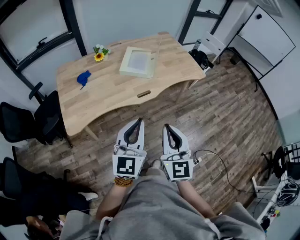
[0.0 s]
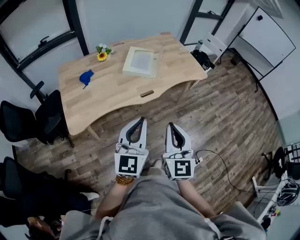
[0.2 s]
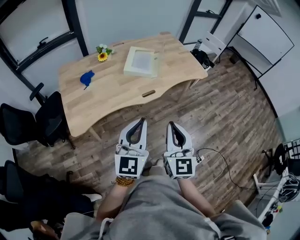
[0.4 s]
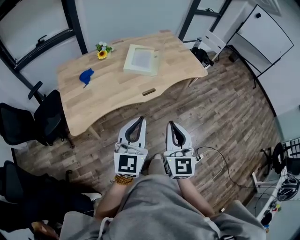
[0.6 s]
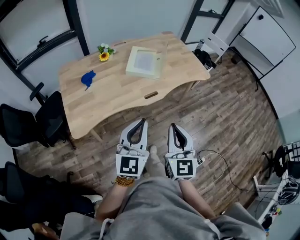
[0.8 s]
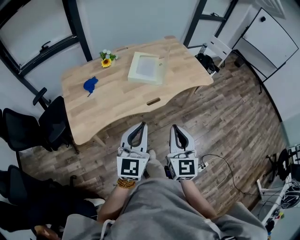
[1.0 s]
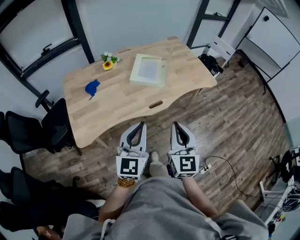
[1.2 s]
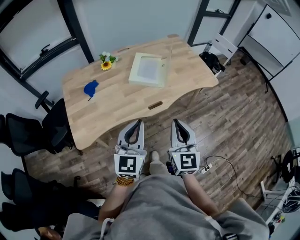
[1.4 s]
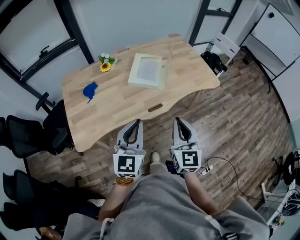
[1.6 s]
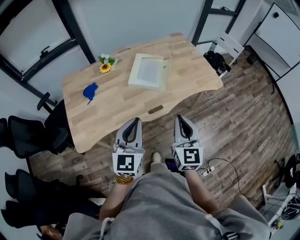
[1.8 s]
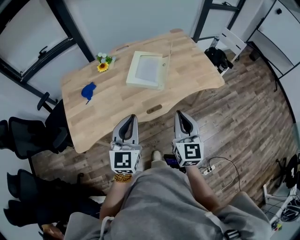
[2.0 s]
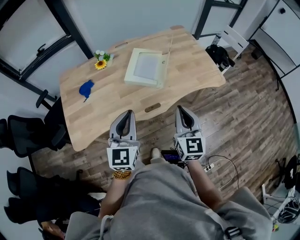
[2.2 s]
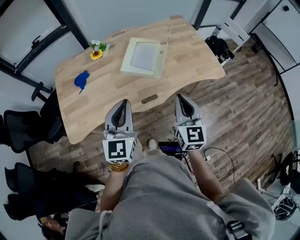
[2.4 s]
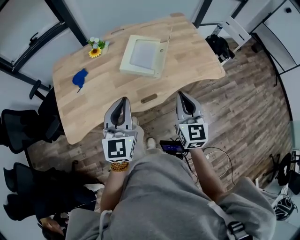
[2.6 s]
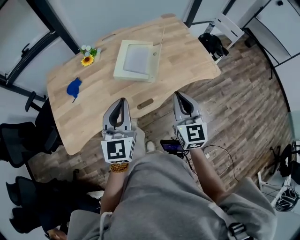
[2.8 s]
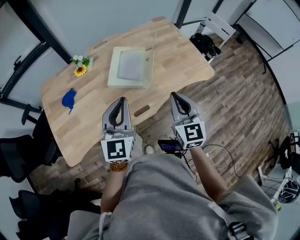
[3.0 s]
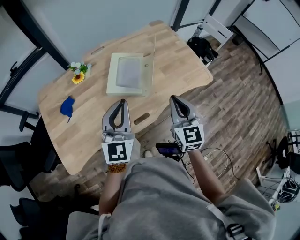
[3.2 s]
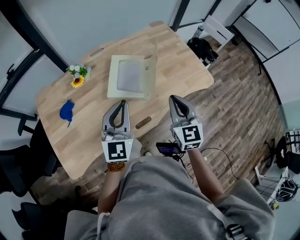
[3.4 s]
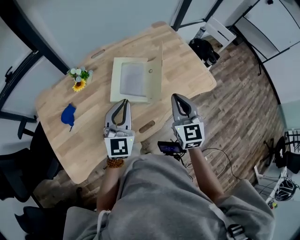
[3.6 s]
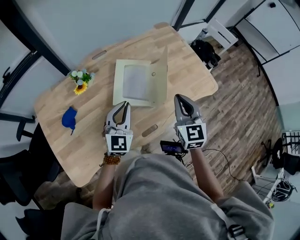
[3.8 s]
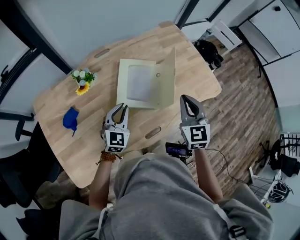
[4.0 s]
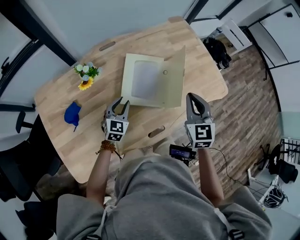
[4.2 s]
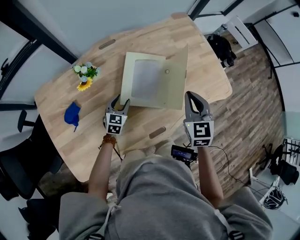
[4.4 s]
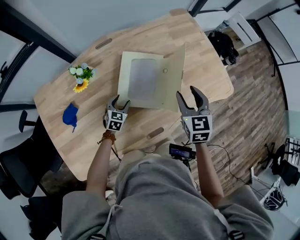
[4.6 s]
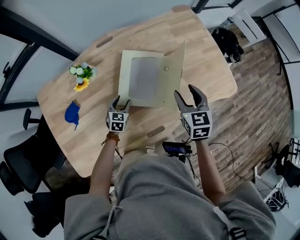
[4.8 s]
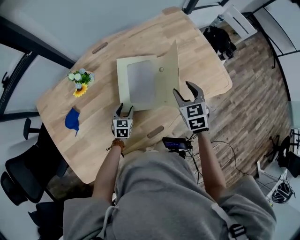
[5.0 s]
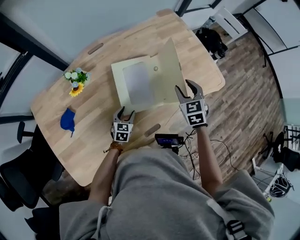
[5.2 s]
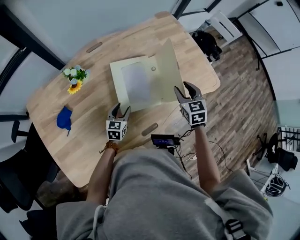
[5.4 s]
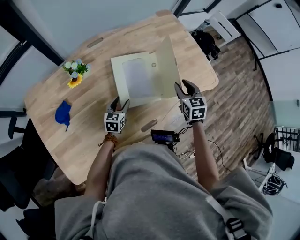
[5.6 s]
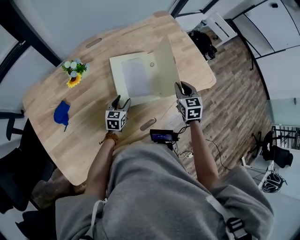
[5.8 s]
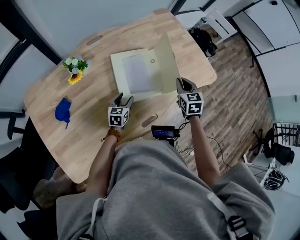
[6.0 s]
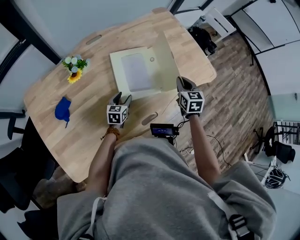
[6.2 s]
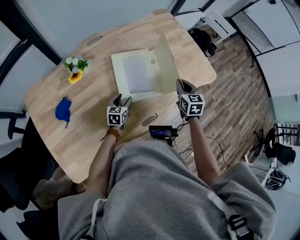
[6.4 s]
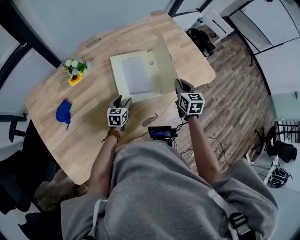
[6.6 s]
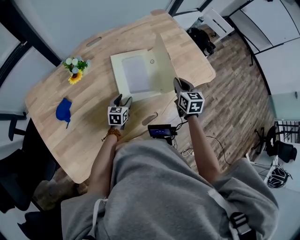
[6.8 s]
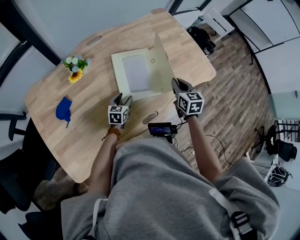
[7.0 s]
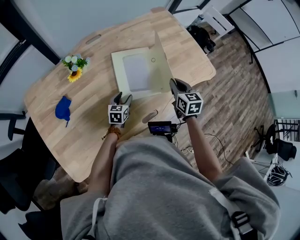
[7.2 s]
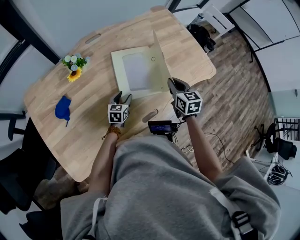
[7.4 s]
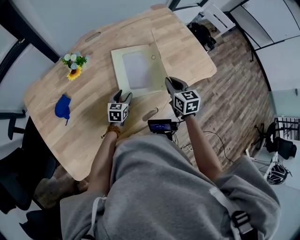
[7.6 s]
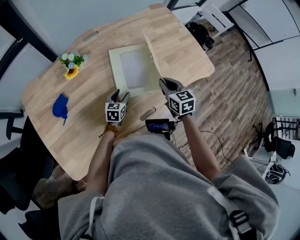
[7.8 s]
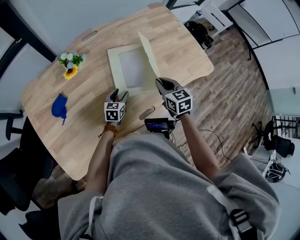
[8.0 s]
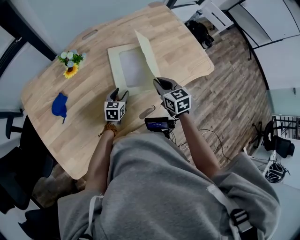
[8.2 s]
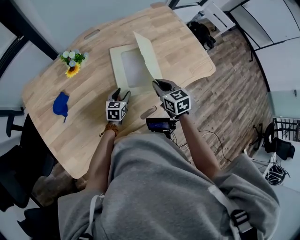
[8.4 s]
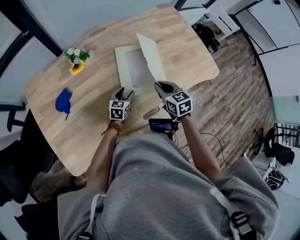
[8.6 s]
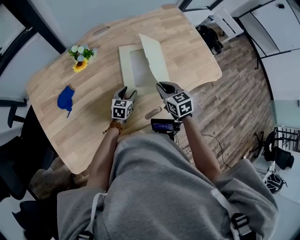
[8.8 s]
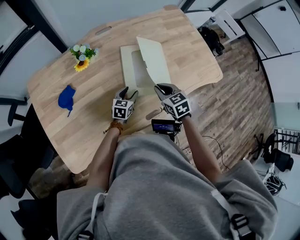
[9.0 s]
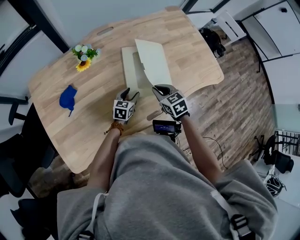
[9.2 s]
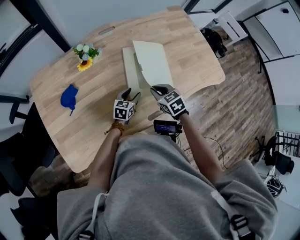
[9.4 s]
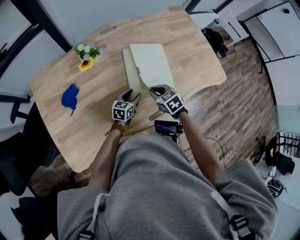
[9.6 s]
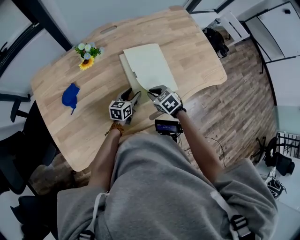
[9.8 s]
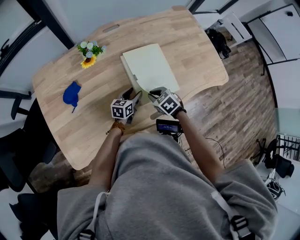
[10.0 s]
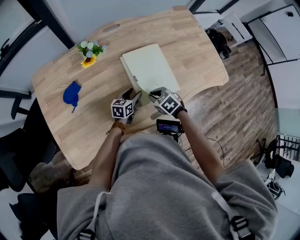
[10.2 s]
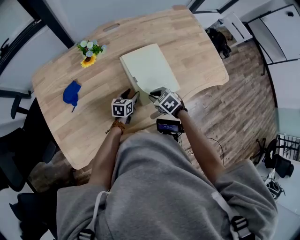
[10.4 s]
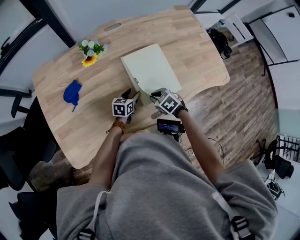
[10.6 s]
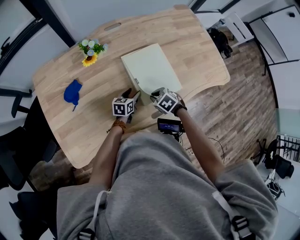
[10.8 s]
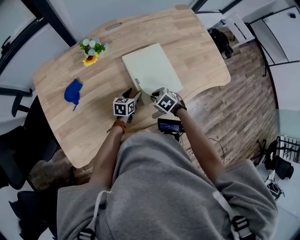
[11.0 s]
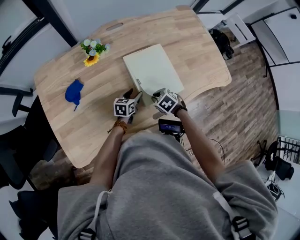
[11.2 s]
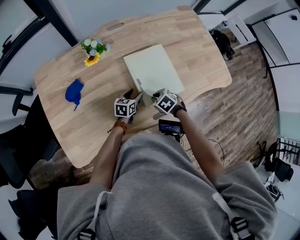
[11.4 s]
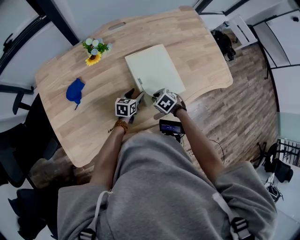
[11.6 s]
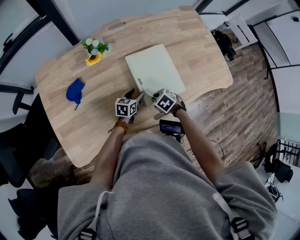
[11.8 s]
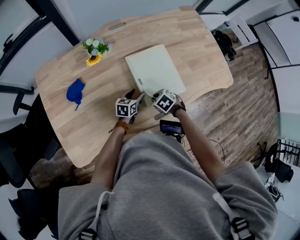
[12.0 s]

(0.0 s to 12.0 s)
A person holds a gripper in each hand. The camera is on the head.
0.0 s - 1.6 s: Both grippers travel together forward, approximately 15 cm.
1.6 s - 3.0 s: The grippers both shift forward by about 20 cm.
3.0 s - 4.4 s: The left gripper is displaced downward, forward and to the left by roughly 40 cm, points its fingers roughly 30 degrees further downward, and opens. Meanwhile the right gripper moves forward, about 20 cm.
4.4 s - 6.0 s: The right gripper moves downward and to the right, approximately 10 cm, and opens, then closes once more. Meanwhile the left gripper moves to the right, about 5 cm.
6.0 s - 7.6 s: The right gripper moves to the left, some 5 cm.
7.6 s - 9.0 s: The right gripper moves to the left, some 10 cm, and rotates roughly 20 degrees.
9.0 s - 10.4 s: The right gripper is displaced downward and to the left by about 10 cm, and rotates roughly 30 degrees.
10.4 s - 12.0 s: The grippers move only a little.

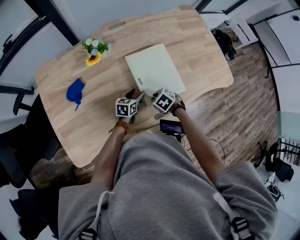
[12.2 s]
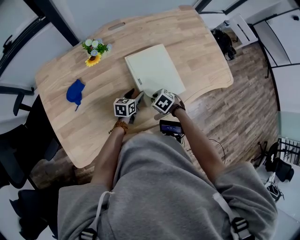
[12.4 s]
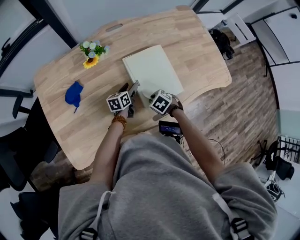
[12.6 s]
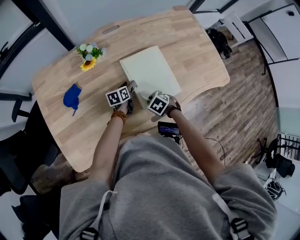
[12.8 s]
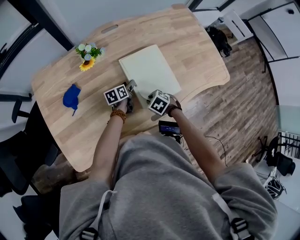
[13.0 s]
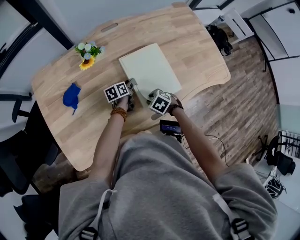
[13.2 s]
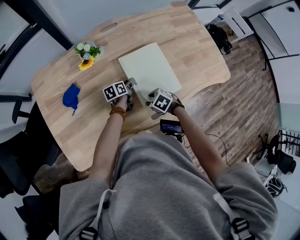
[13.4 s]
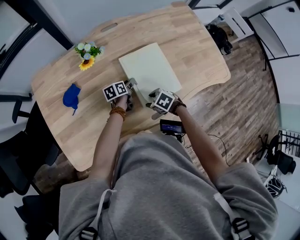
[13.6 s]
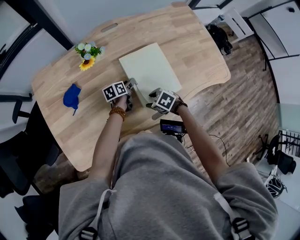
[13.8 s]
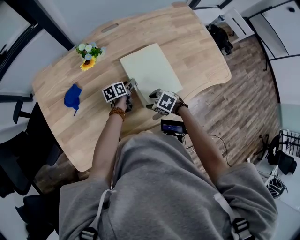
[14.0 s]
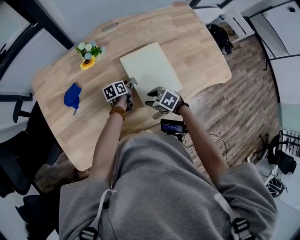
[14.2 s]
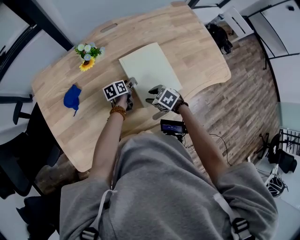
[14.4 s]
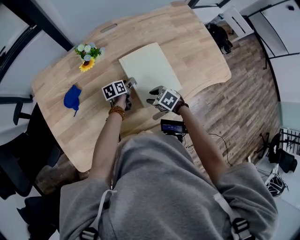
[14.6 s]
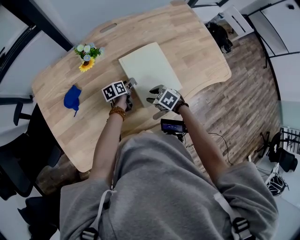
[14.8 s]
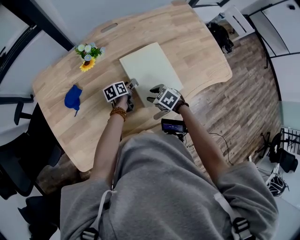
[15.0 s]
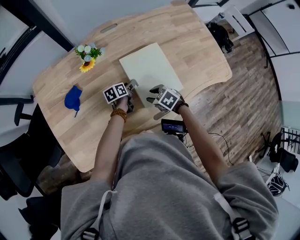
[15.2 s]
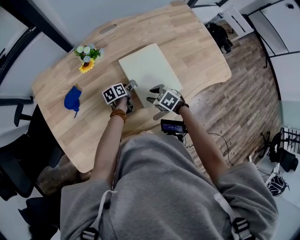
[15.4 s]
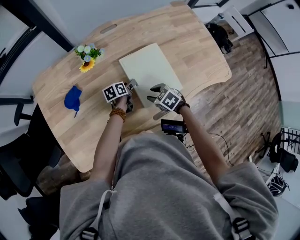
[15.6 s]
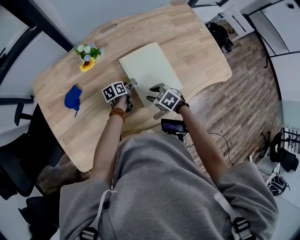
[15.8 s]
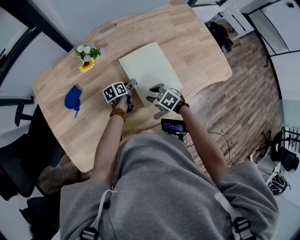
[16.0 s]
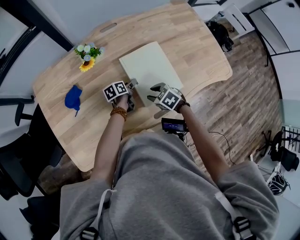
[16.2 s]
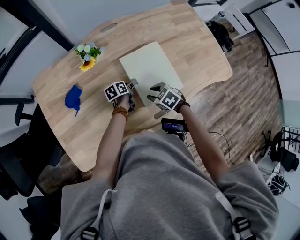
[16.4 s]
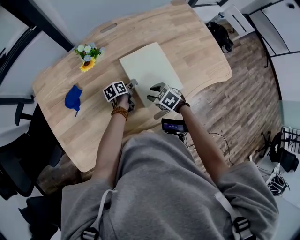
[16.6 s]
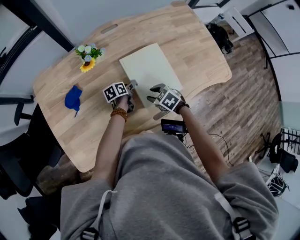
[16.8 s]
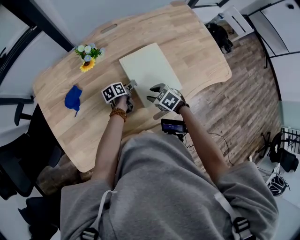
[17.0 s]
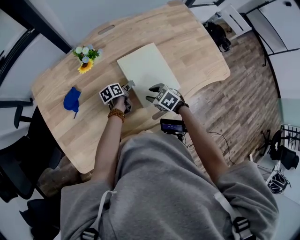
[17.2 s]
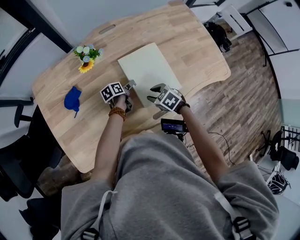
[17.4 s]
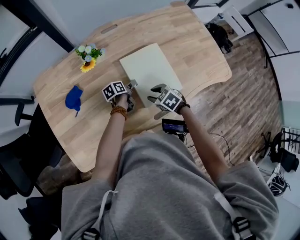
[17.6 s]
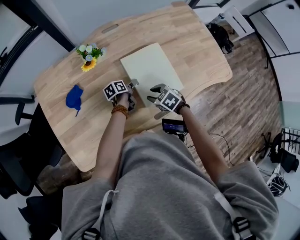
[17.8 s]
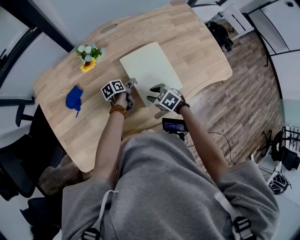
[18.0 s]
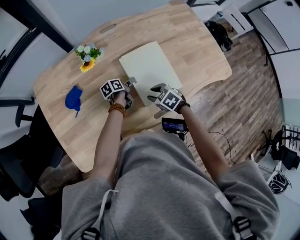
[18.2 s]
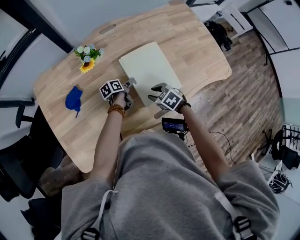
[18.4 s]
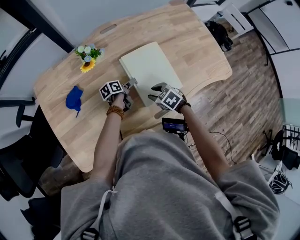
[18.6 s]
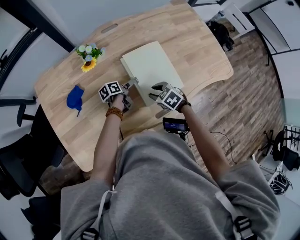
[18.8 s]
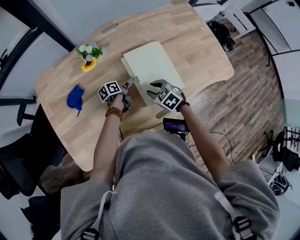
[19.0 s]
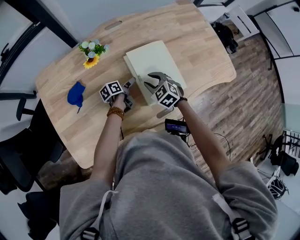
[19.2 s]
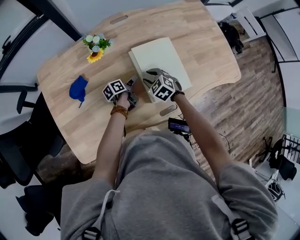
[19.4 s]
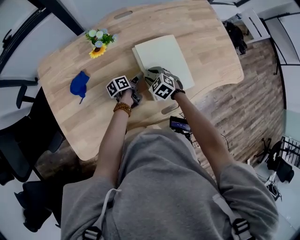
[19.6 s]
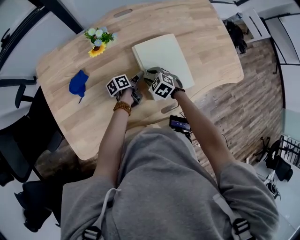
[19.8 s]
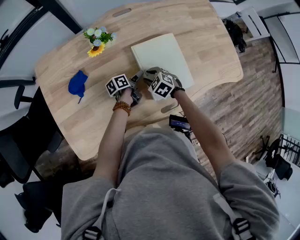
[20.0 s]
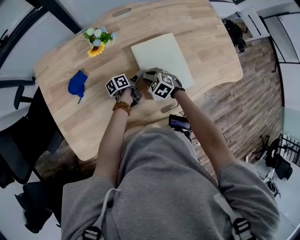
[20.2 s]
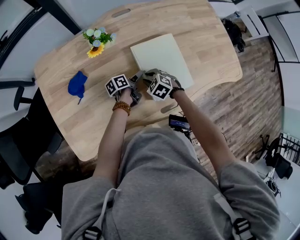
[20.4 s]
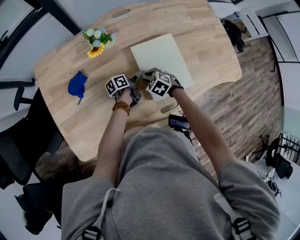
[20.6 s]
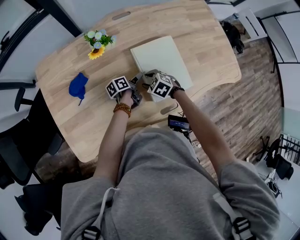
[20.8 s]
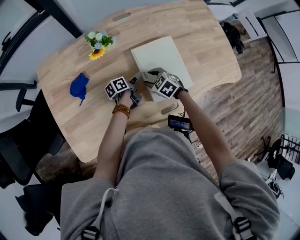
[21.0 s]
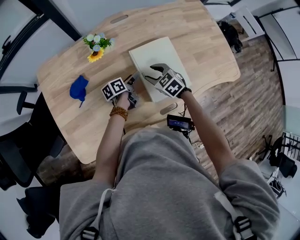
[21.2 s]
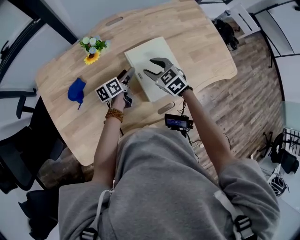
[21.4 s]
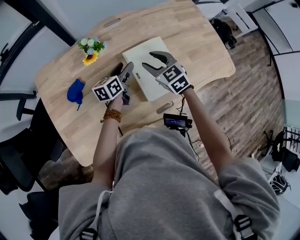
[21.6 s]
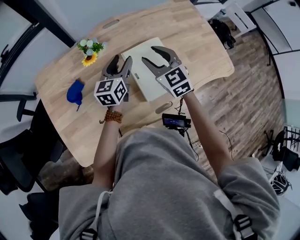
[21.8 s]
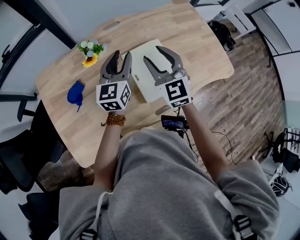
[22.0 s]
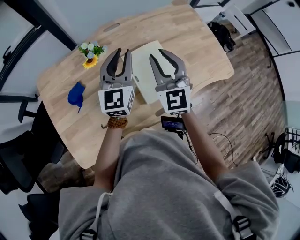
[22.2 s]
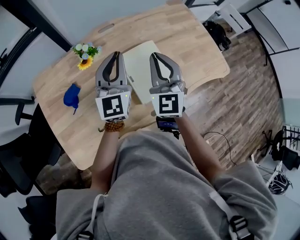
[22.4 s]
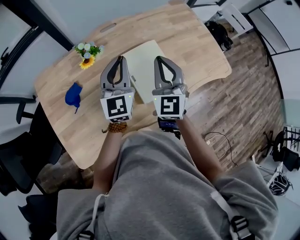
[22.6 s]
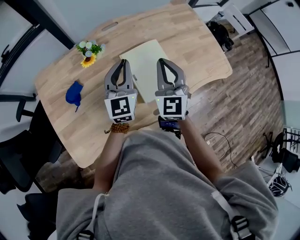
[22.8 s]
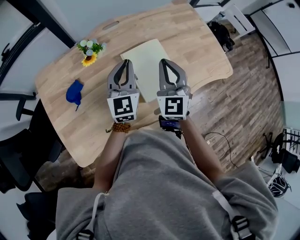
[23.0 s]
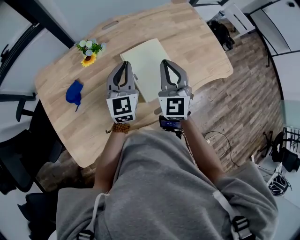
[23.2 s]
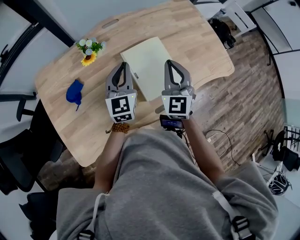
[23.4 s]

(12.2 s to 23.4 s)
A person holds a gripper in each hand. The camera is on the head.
12.2 s - 13.8 s: The left gripper ends up approximately 10 cm from where it was, and rotates roughly 30 degrees, while the right gripper opens.
13.8 s - 15.4 s: There are only small adjustments of the grippers.
15.4 s - 17.0 s: Both grippers stay put.
17.0 s - 18.6 s: The grippers make only small movements.
18.6 s - 20.2 s: The right gripper moves to the left, forward and downward, roughly 10 cm.
20.2 s - 21.8 s: Both grippers travel together upward, some 25 cm. The left gripper rolls clockwise, seen from behind, by about 60 degrees. Meanwhile the right gripper angles its fingers upward, by approximately 40 degrees.
21.8 s - 23.4 s: The left gripper reaches some 15 cm upward, then returns, swivels roughly 20 degrees, and closes its fingers; the right gripper shifts approximately 5 cm to the right, goes upward and returns, some 10 cm each way, swivels approximately 30 degrees, and closes up.

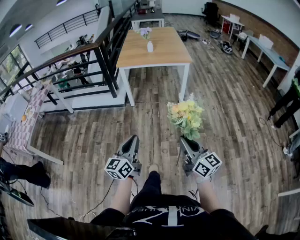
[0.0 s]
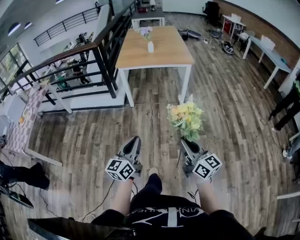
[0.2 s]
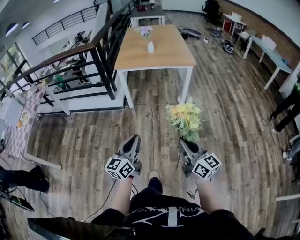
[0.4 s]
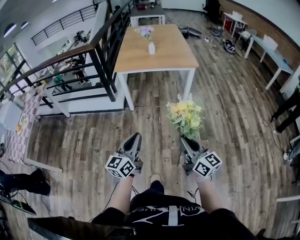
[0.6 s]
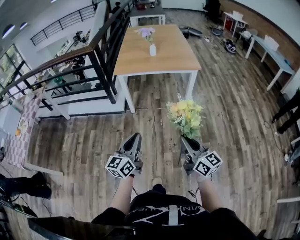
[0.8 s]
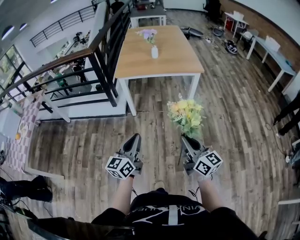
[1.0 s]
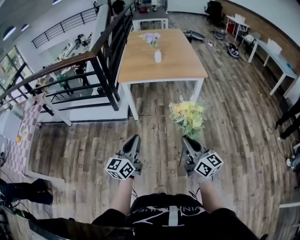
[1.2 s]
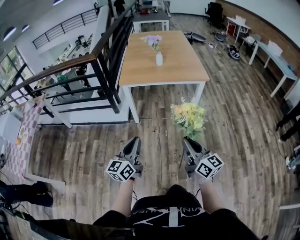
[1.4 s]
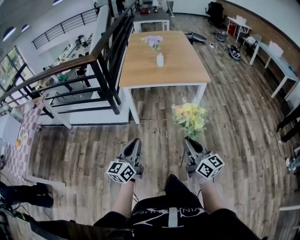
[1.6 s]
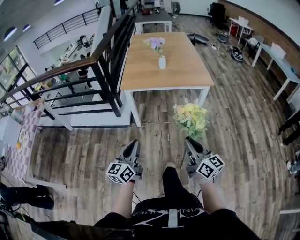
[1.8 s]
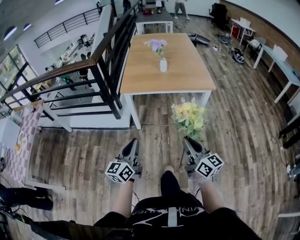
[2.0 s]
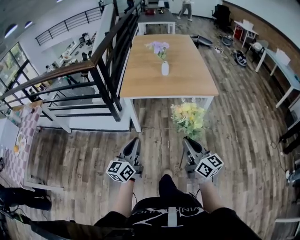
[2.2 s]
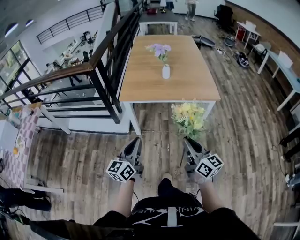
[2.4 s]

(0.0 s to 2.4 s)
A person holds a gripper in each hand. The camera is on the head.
0.0 s - 1.2 s: Both grippers move forward, about 25 cm.
1.2 s - 2.4 s: The two grippers go about 20 cm forward.
